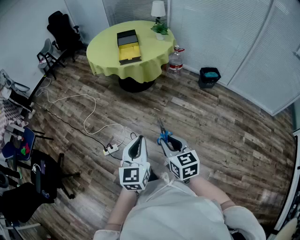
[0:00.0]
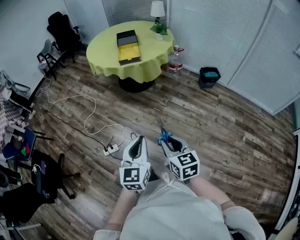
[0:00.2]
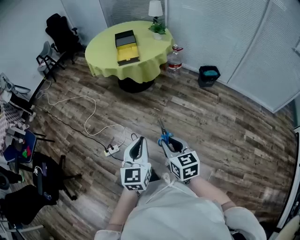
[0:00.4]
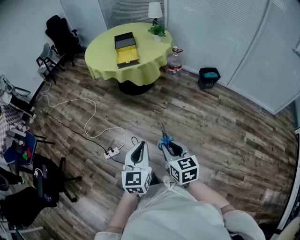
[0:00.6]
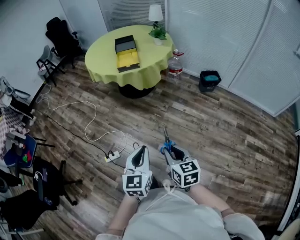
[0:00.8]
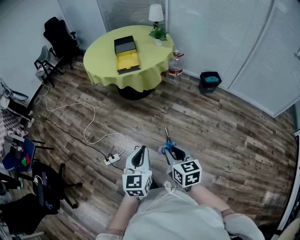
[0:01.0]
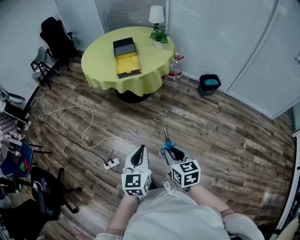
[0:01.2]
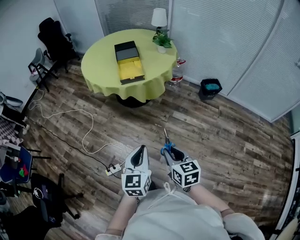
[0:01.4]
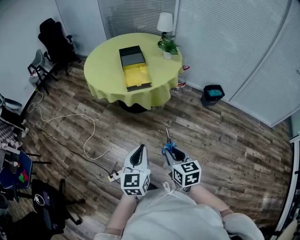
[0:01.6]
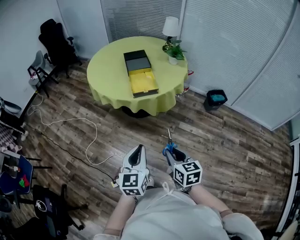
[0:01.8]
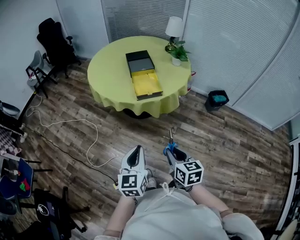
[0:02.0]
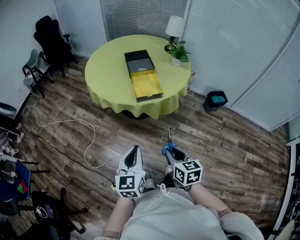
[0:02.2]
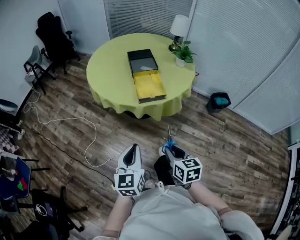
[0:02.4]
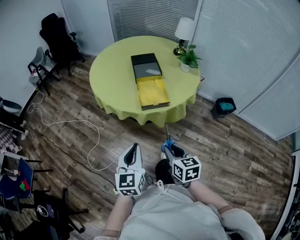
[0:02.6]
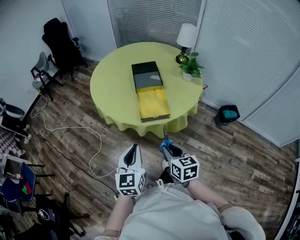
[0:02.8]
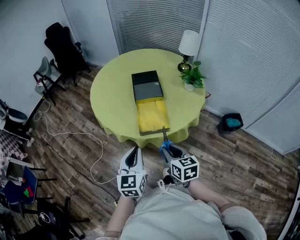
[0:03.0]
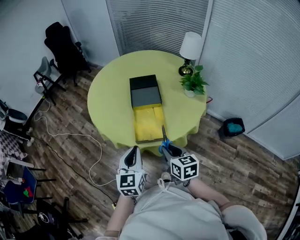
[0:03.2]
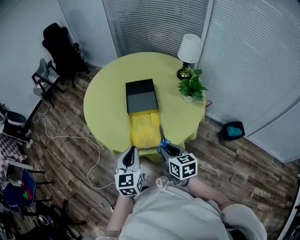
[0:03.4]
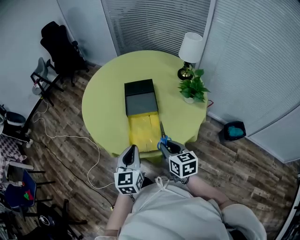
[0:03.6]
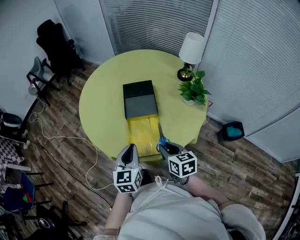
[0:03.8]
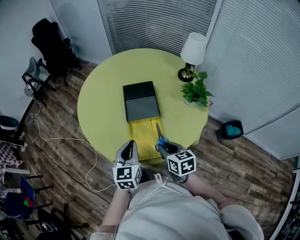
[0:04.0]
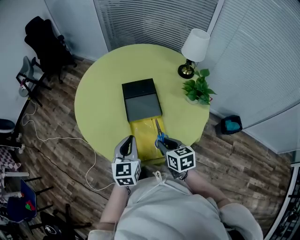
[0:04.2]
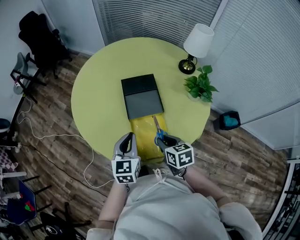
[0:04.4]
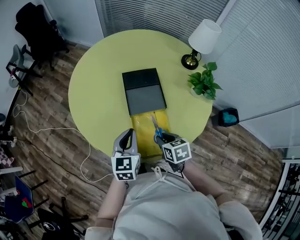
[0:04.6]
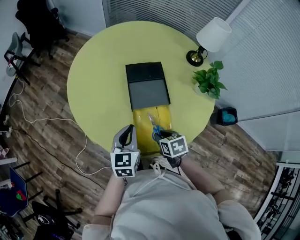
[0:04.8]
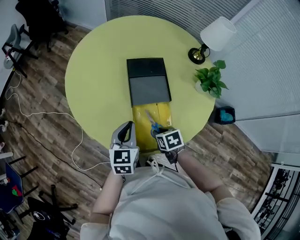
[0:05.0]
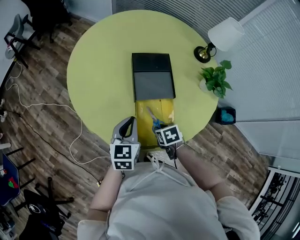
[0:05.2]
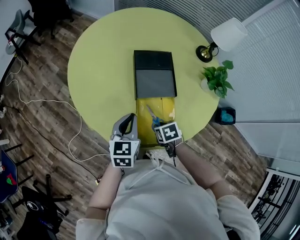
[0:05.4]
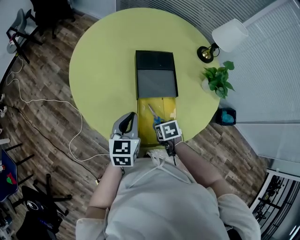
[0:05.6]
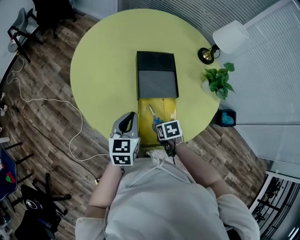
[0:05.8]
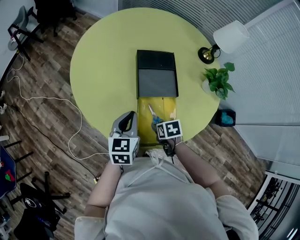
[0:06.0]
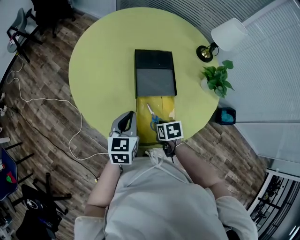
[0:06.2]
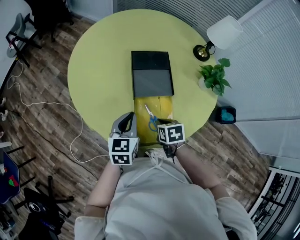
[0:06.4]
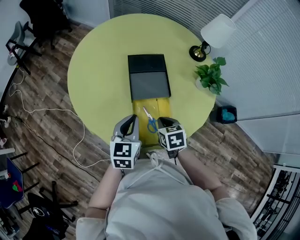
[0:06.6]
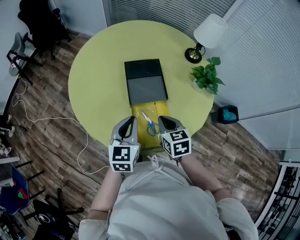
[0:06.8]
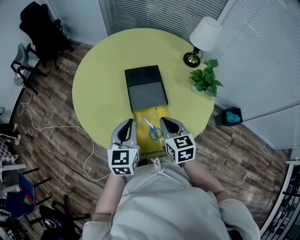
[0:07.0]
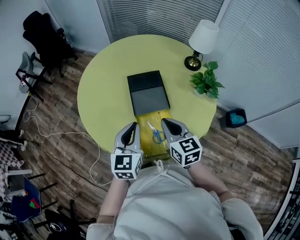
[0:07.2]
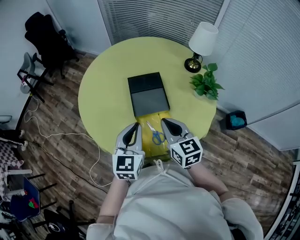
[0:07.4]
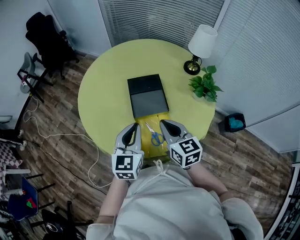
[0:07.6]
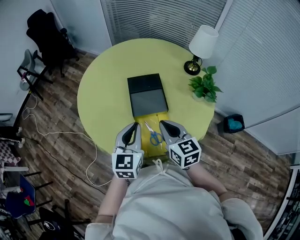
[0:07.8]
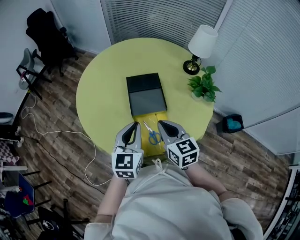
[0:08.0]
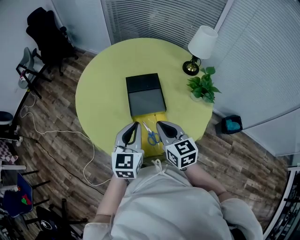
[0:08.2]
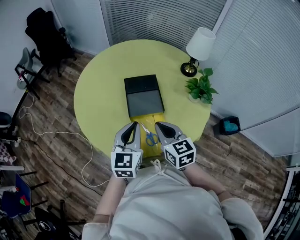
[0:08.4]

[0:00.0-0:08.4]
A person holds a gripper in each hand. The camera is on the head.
0:00.0 to 0:01.4: The grippers both shift forward by about 20 cm.
0:01.4 to 0:02.8: Both grippers move forward, some 35 cm.
0:02.8 to 0:04.2: Both grippers move forward, roughly 35 cm.
0:04.2 to 0:05.6: The right gripper goes roughly 20 cm downward, and angles its fingers downward, by approximately 40 degrees, while the left gripper moves downward, about 10 cm.
0:05.6 to 0:07.0: The left gripper goes about 10 cm upward; the right gripper heads upward, covering about 20 cm, tips its fingers upward by about 40 degrees, and closes.
0:07.0 to 0:08.4: The left gripper moves about 5 cm, while the right gripper shifts by about 5 cm.

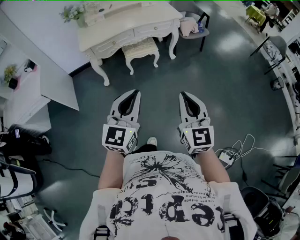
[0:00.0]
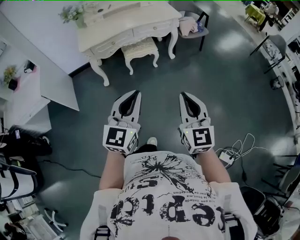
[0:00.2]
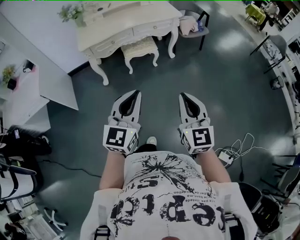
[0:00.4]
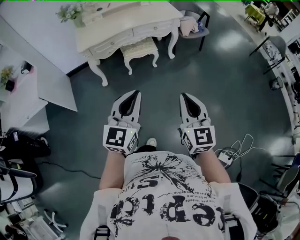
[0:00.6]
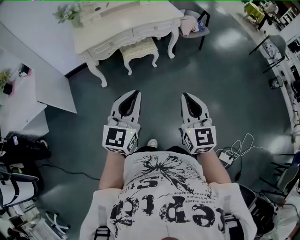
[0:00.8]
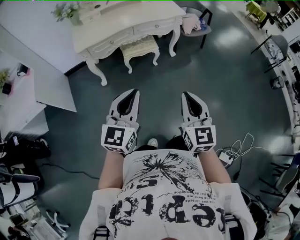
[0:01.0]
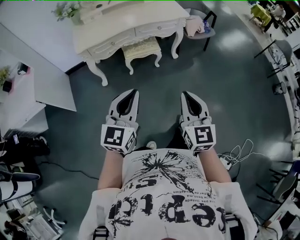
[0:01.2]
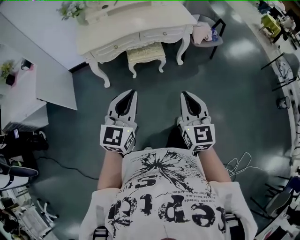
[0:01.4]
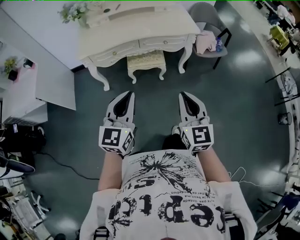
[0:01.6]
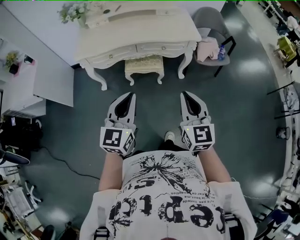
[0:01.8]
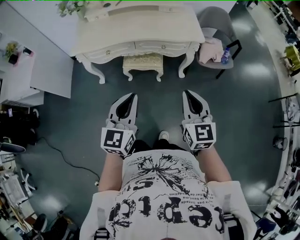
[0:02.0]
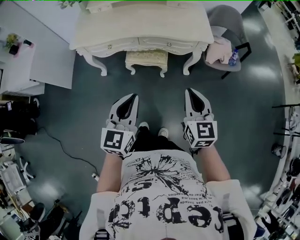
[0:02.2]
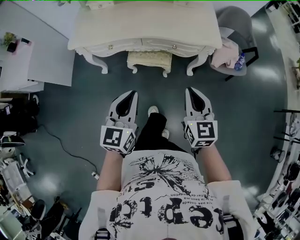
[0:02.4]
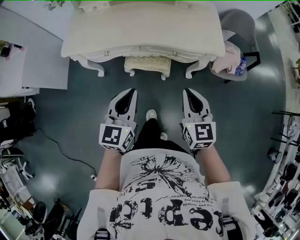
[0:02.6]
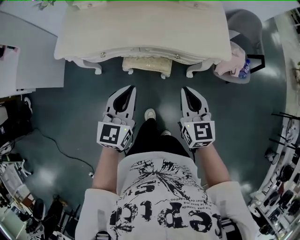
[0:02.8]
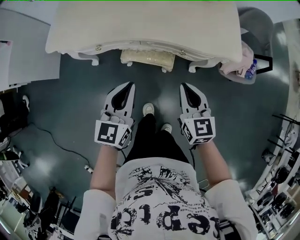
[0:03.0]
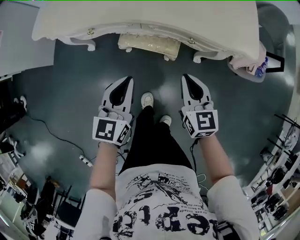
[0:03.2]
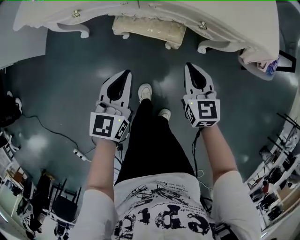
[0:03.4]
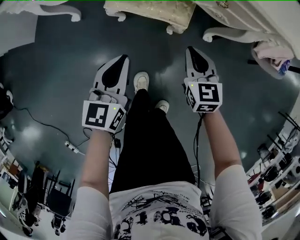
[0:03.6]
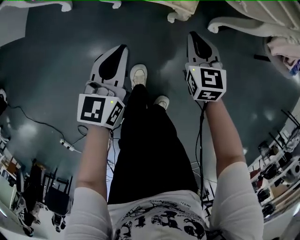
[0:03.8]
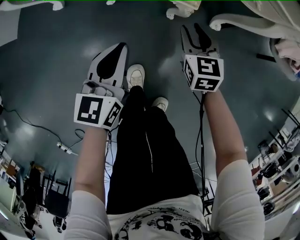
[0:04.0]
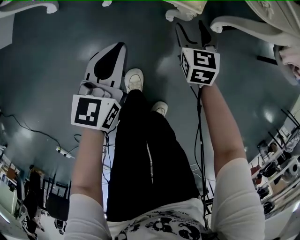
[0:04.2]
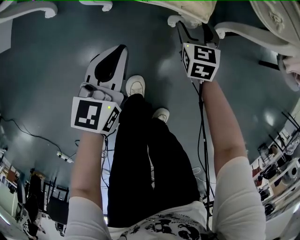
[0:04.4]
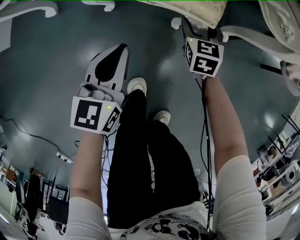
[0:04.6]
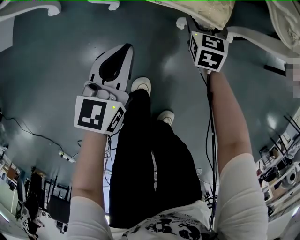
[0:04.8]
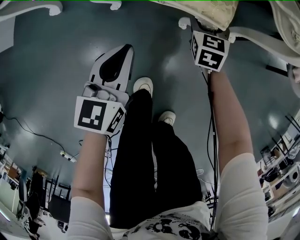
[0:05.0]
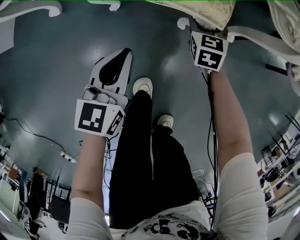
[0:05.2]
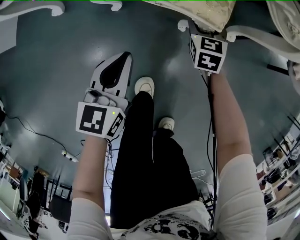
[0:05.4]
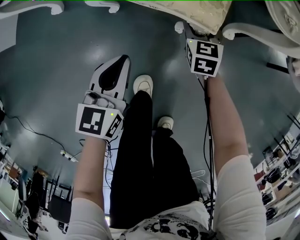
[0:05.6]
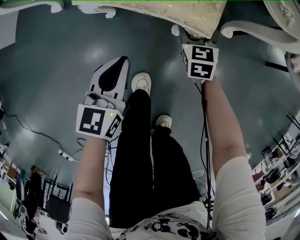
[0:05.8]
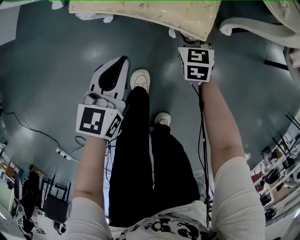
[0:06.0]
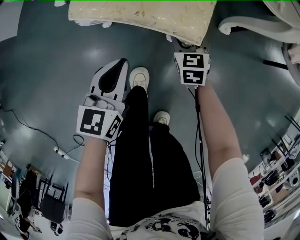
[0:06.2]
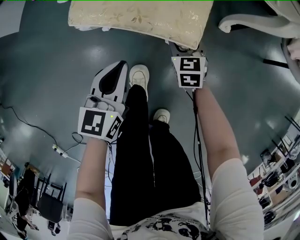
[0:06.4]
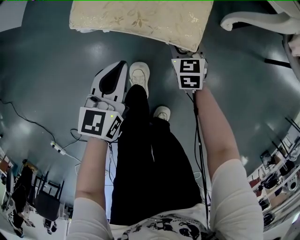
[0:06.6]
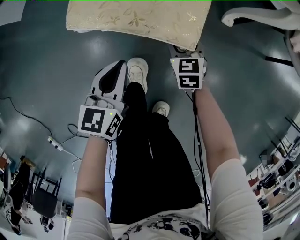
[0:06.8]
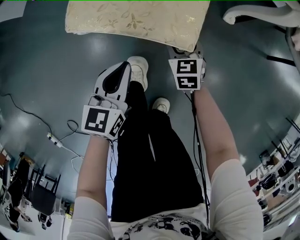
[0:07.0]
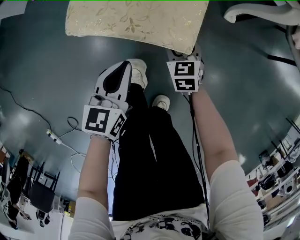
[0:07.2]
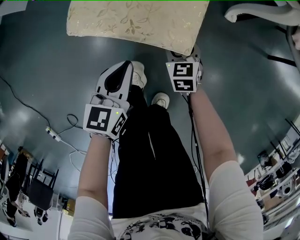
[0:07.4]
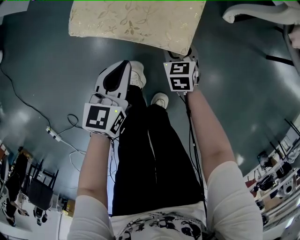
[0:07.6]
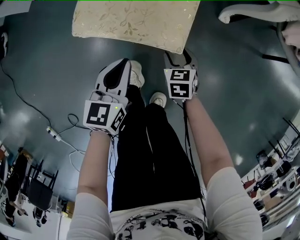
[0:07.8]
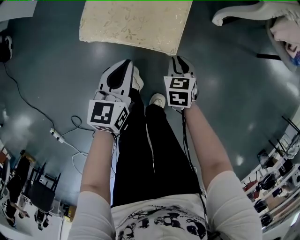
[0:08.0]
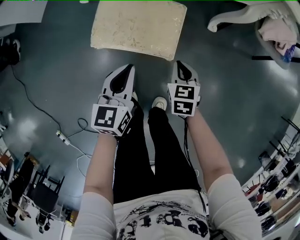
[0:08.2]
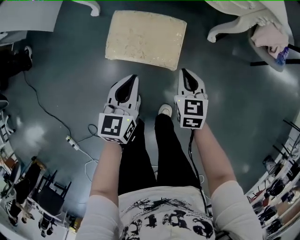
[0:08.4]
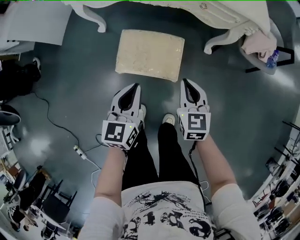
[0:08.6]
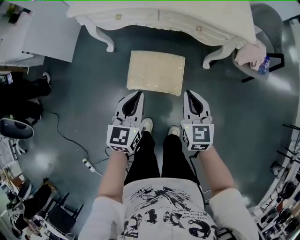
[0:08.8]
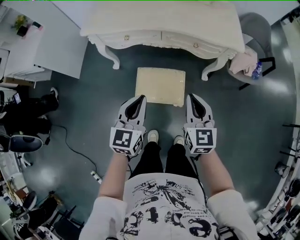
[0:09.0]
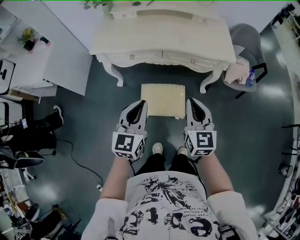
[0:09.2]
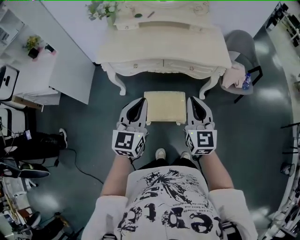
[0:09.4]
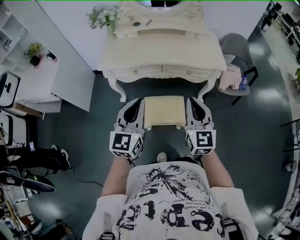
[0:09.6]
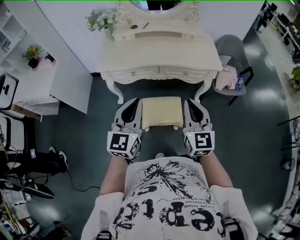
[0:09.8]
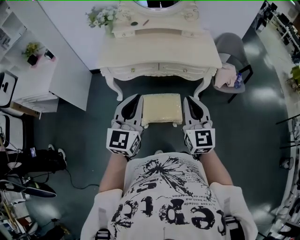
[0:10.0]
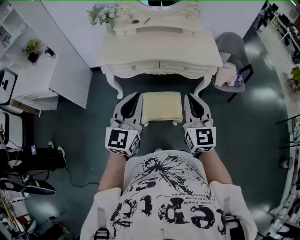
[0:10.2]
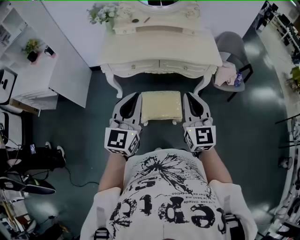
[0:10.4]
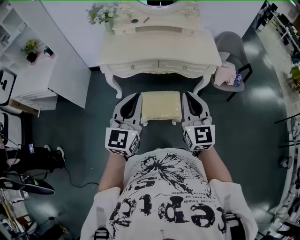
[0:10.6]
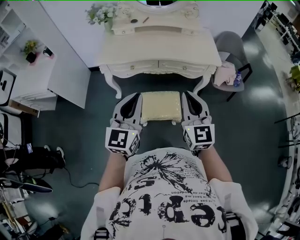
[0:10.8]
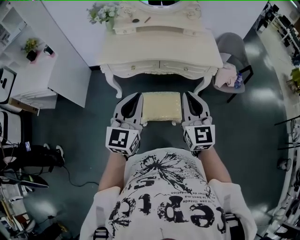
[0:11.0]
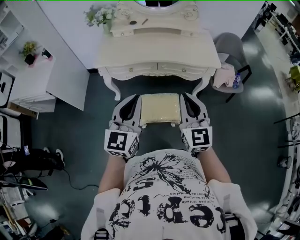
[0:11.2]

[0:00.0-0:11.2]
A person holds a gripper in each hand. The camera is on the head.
0:00.0 to 0:01.6: Both grippers move forward, some 30 cm.
0:01.6 to 0:03.2: The two grippers go about 50 cm forward and downward. The right gripper rotates approximately 30 degrees. The left gripper rotates roughly 20 degrees.
0:03.2 to 0:04.8: The grippers both shift downward by roughly 40 cm. The right gripper rotates roughly 20 degrees, and opens.
0:04.8 to 0:06.4: The two grippers go roughly 15 cm backward.
0:06.4 to 0:08.0: The right gripper moves backward and upward, approximately 20 cm, and closes; the left gripper travels backward and upward by roughly 15 cm.
0:08.0 to 0:09.6: Both grippers move upward, some 70 cm. The left gripper swivels some 30 degrees; the right gripper points its fingers some 50 degrees further upward.
0:09.6 to 0:11.2: The grippers move only a little.

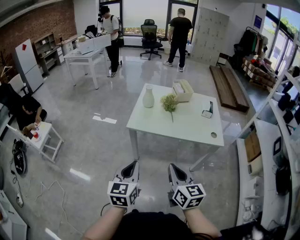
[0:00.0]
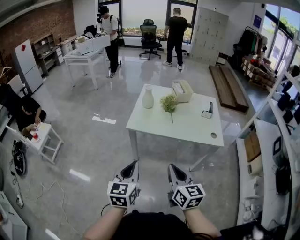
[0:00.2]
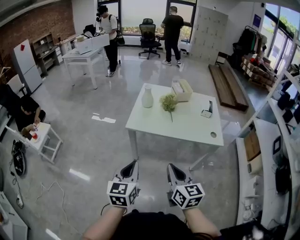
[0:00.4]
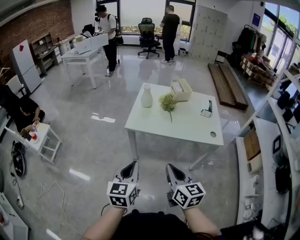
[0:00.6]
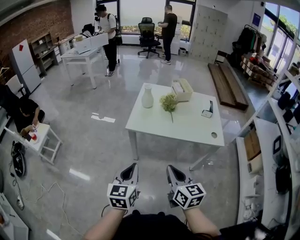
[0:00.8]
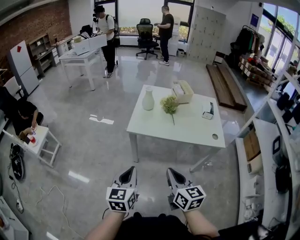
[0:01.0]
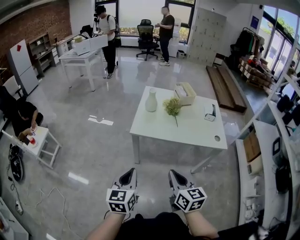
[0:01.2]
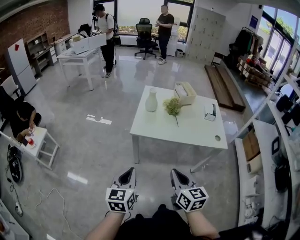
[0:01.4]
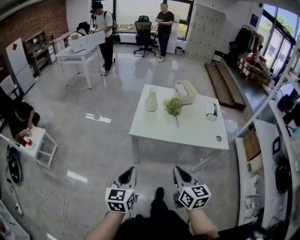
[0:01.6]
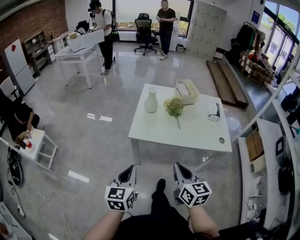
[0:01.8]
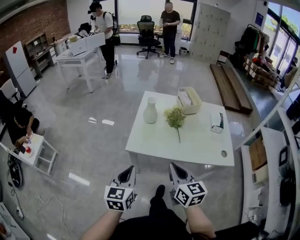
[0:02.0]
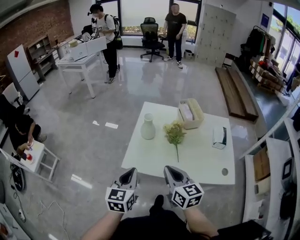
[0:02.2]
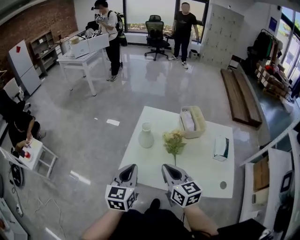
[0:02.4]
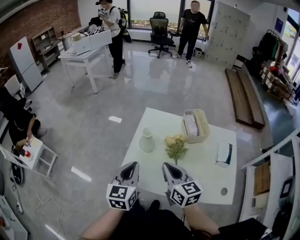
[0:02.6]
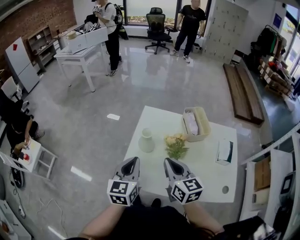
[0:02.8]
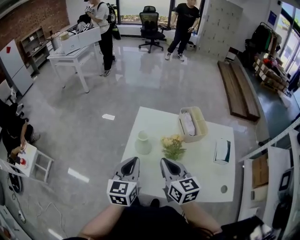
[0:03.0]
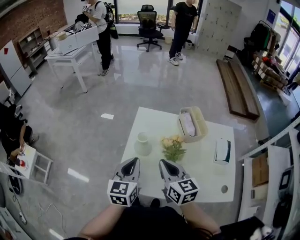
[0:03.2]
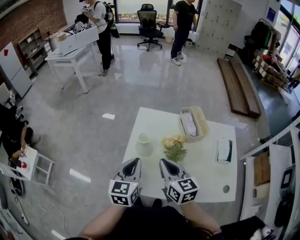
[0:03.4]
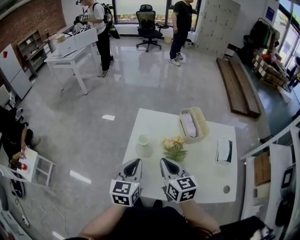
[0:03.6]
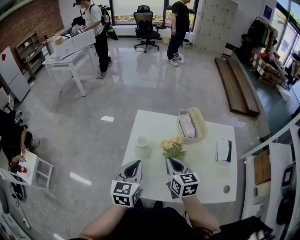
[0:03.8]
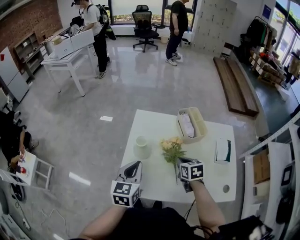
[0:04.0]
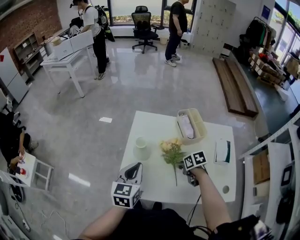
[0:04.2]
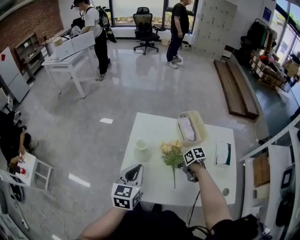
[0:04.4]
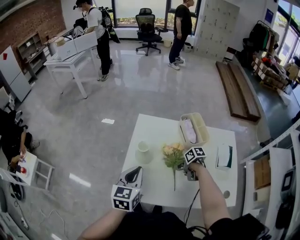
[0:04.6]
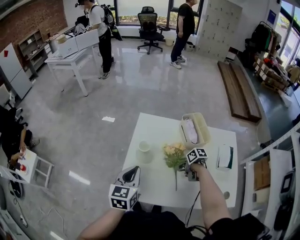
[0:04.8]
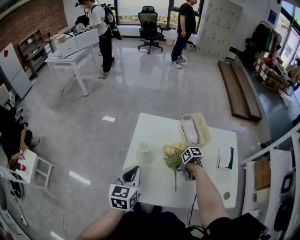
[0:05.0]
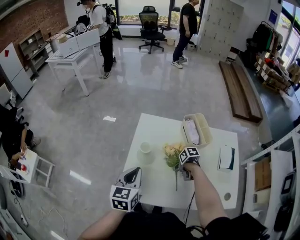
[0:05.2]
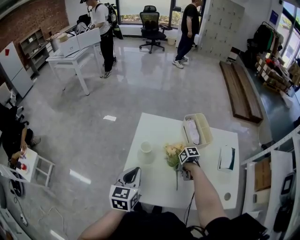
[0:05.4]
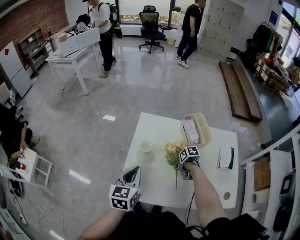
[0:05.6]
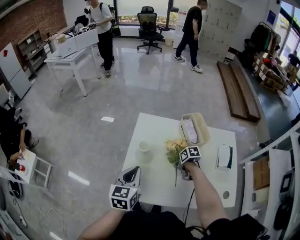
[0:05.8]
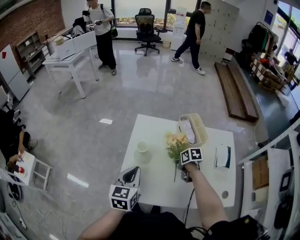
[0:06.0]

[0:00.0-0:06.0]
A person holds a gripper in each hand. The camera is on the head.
0:00.0 to 0:01.6: The right gripper heads forward, covering roughly 5 cm; the left gripper moves to the left and forward, some 10 cm.
0:01.6 to 0:03.0: Both grippers are carried forward, some 40 cm.
0:03.0 to 0:04.4: The right gripper shifts some 25 cm downward and to the right, tilts its fingers roughly 40 degrees downward, and opens its fingers.
0:04.4 to 0:06.0: The right gripper closes up.
